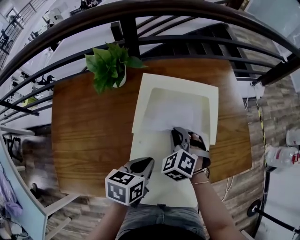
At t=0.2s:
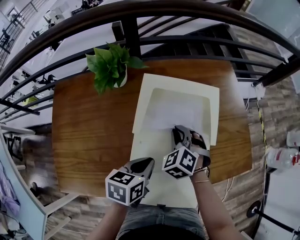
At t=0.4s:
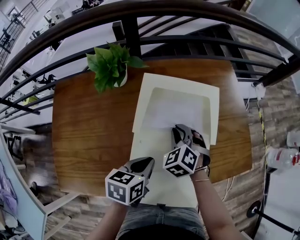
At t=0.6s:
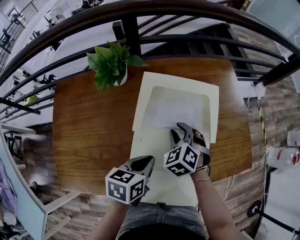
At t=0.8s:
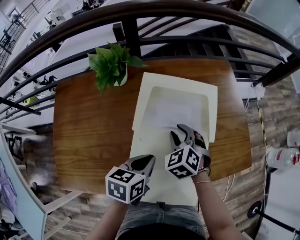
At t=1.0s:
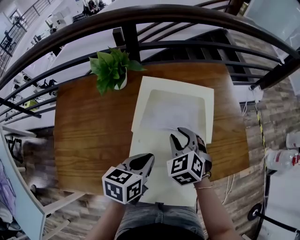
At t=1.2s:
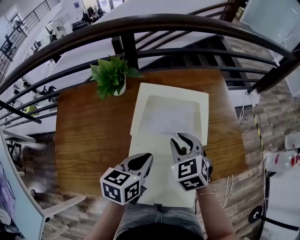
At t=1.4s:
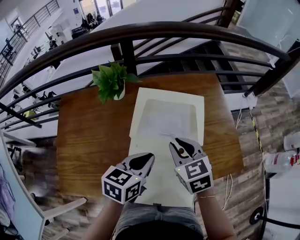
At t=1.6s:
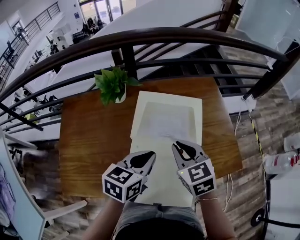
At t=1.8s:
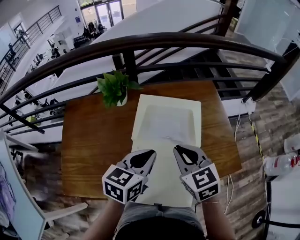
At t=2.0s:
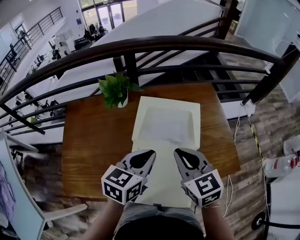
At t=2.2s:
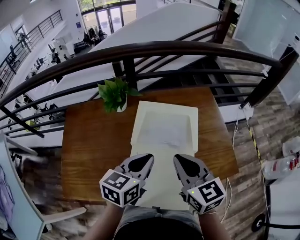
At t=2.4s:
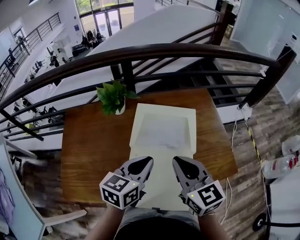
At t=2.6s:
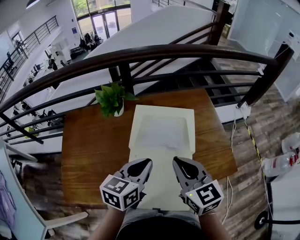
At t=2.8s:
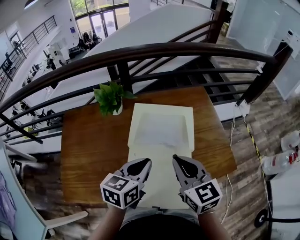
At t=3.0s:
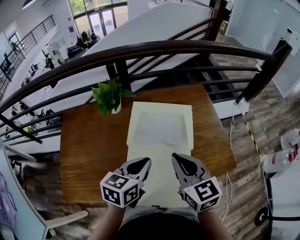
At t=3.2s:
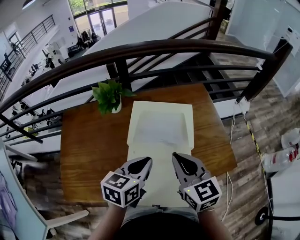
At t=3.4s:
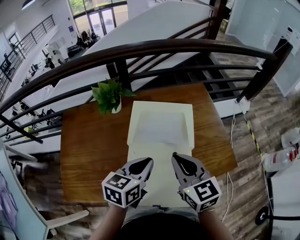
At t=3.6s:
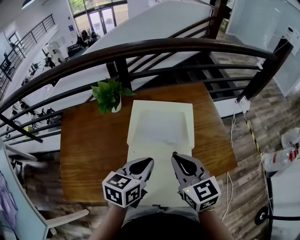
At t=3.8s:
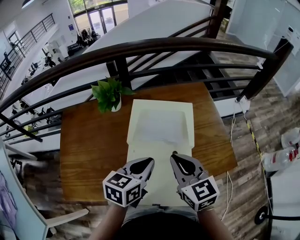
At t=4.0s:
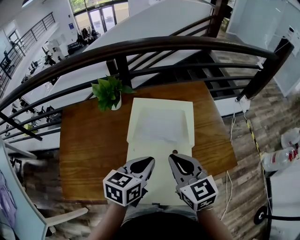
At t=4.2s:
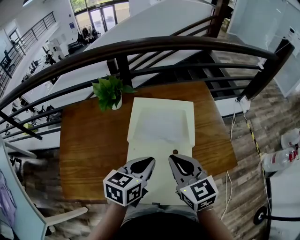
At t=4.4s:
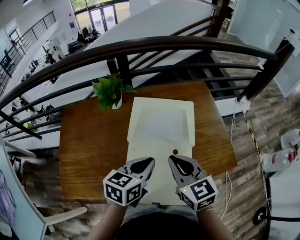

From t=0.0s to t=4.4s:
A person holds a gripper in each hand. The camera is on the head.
From t=0.0s to t=1.4s: The two grippers go some 10 cm upward. The right gripper turns by some 40 degrees.
From t=1.4s to t=3.0s: The right gripper goes some 10 cm upward and backward.
From t=3.0s to t=4.4s: The grippers stay close to where they were, moving slightly.

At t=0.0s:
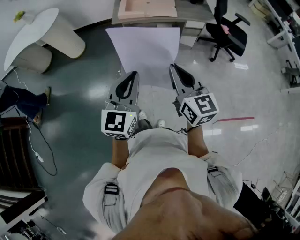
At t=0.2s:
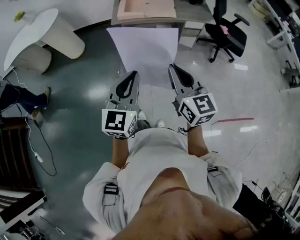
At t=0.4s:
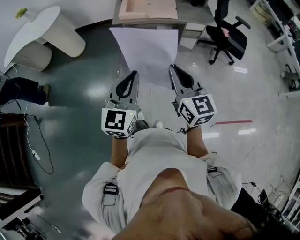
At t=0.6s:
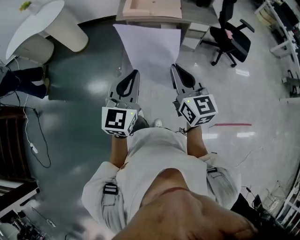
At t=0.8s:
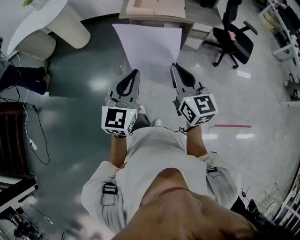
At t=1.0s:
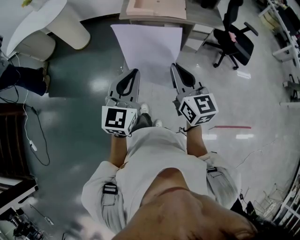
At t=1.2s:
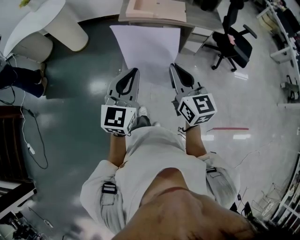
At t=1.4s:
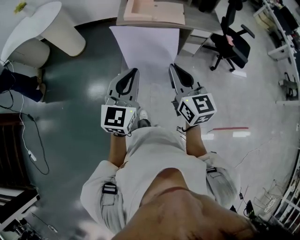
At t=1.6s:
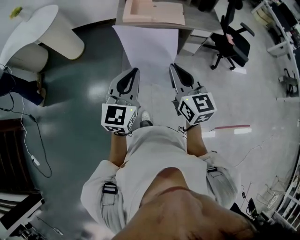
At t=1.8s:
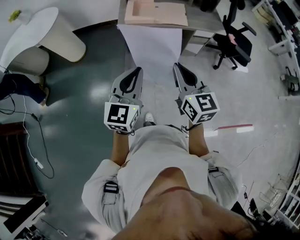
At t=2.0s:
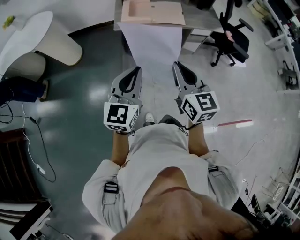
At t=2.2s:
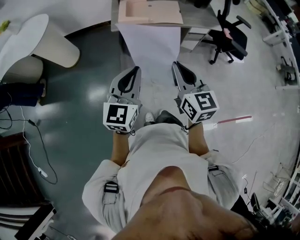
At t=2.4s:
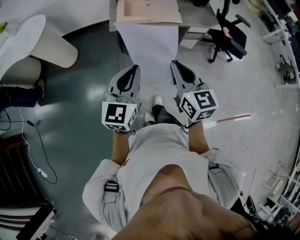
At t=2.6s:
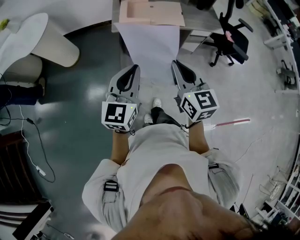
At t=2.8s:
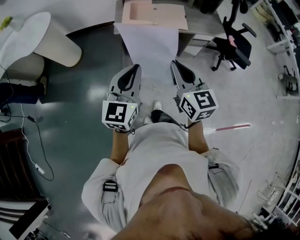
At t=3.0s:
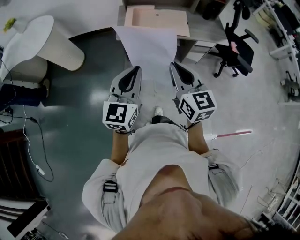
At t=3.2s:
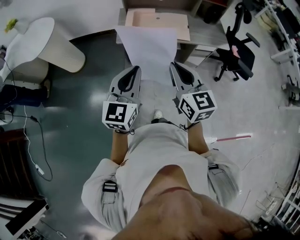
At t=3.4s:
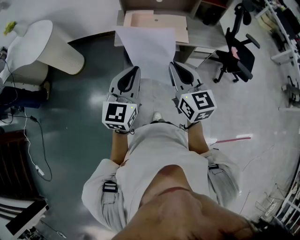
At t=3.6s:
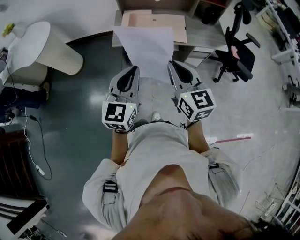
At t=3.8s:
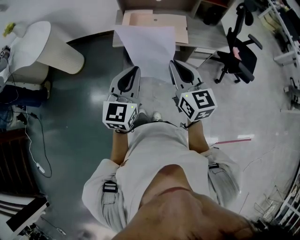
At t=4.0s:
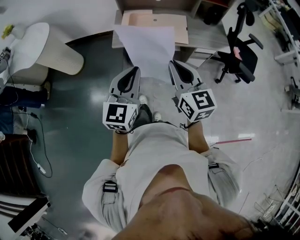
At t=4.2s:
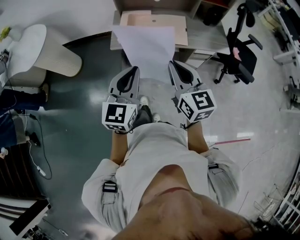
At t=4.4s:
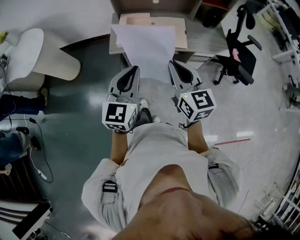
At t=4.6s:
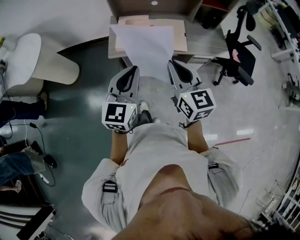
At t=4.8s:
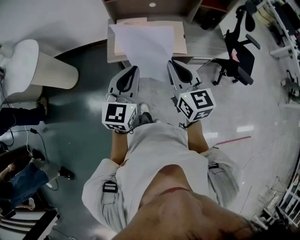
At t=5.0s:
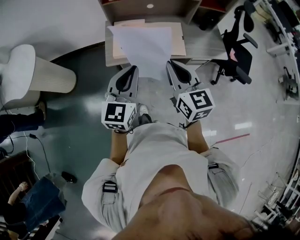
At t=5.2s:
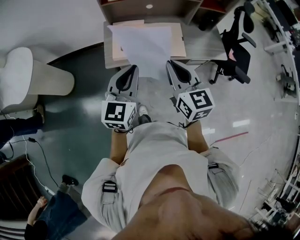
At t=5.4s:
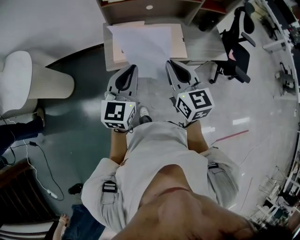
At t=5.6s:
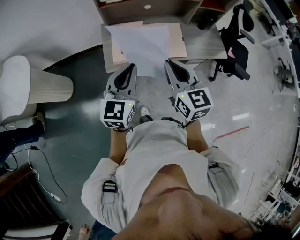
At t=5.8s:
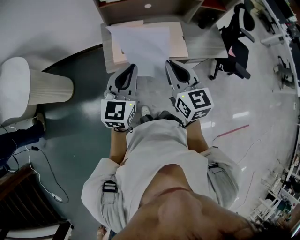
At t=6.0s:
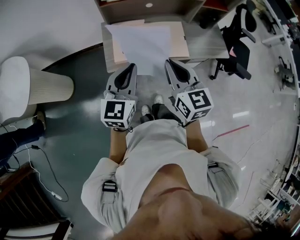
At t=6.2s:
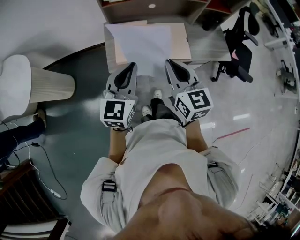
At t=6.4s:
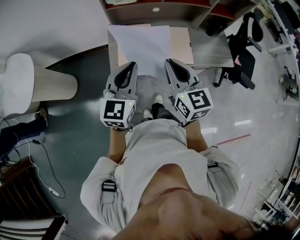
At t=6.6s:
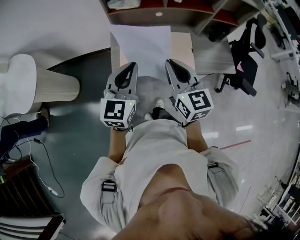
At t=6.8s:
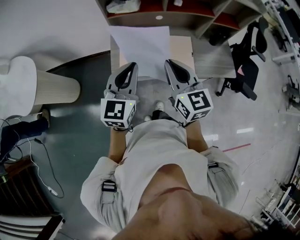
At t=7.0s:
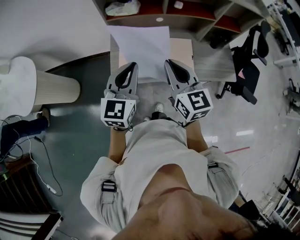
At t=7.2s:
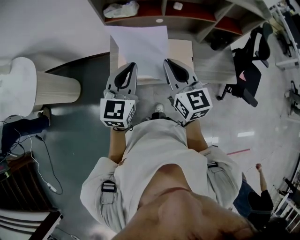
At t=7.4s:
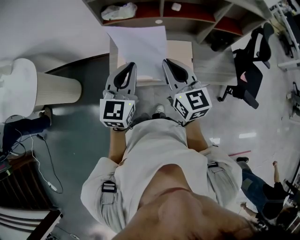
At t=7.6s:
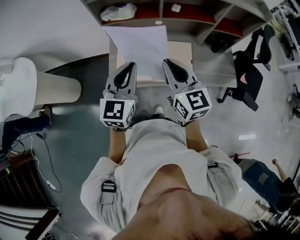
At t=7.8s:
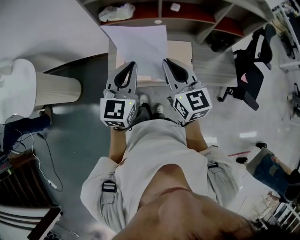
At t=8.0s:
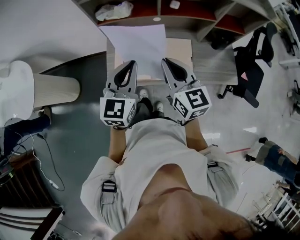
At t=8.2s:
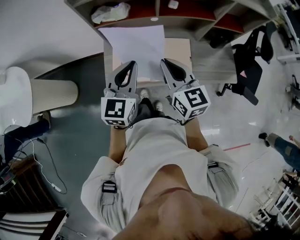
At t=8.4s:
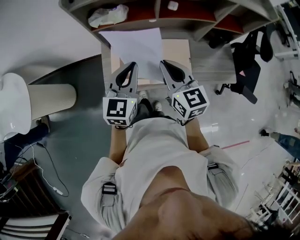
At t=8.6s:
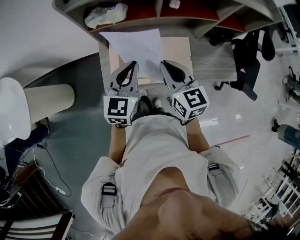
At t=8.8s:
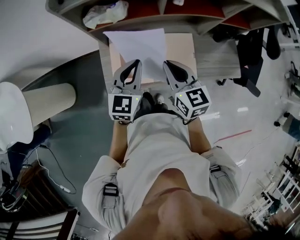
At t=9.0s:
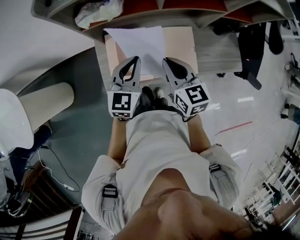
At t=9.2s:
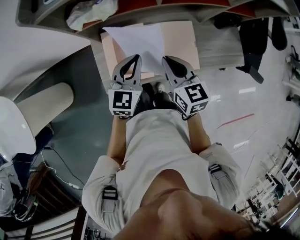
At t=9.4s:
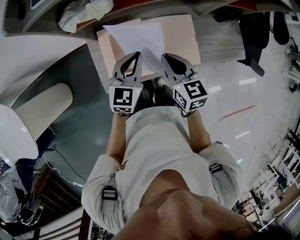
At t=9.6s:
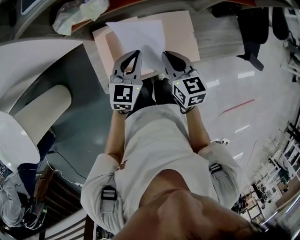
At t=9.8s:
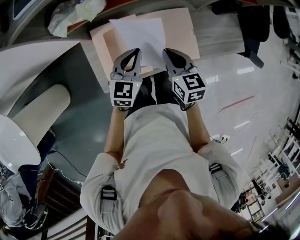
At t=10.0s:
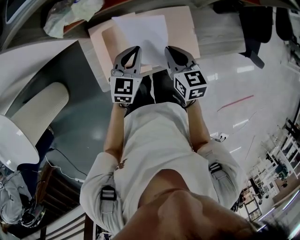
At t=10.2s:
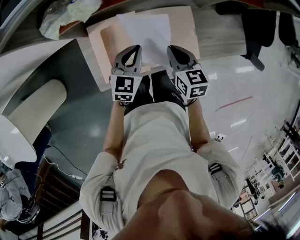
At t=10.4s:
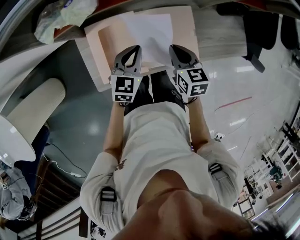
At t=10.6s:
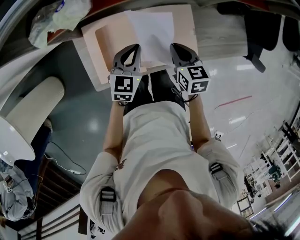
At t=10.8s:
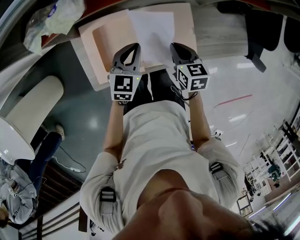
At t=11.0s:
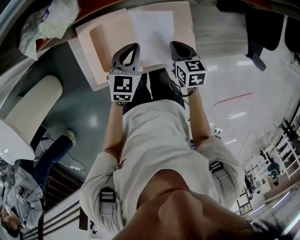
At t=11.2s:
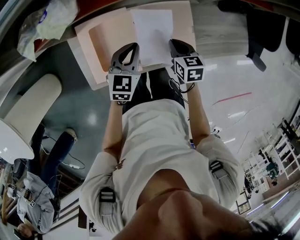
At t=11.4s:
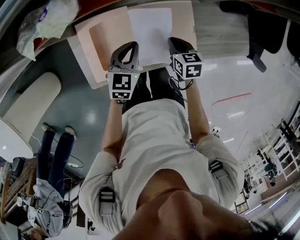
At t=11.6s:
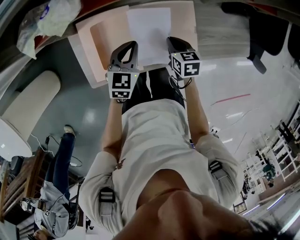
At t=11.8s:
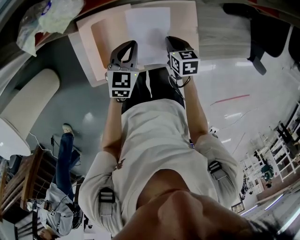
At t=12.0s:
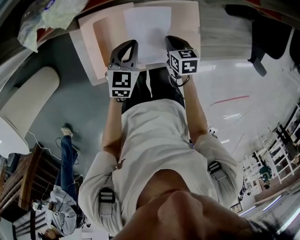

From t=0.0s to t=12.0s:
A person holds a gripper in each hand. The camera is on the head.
From t=0.0s to t=1.6s: The two grippers go about 15 cm forward and to the left.
From t=1.6s to t=3.0s: The grippers both shift forward by approximately 15 cm.
From t=3.0s to t=4.4s: The two grippers go some 15 cm forward.
From t=4.4s to t=6.0s: The two grippers go some 20 cm forward and to the left.
From t=6.0s to t=7.6s: The grippers both shift forward and to the right by approximately 15 cm.
From t=7.6s to t=9.0s: The two grippers go some 20 cm downward and forward.
From t=9.0s to t=10.4s: Both grippers travel together downward, some 15 cm.
From t=10.4s to t=12.0s: The right gripper moves downward, roughly 15 cm.

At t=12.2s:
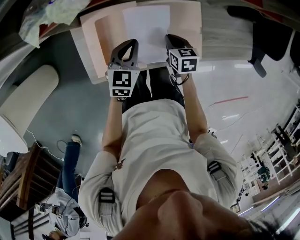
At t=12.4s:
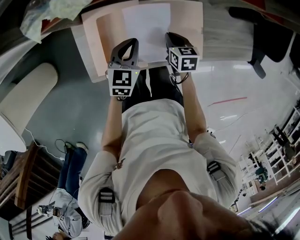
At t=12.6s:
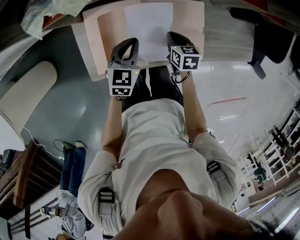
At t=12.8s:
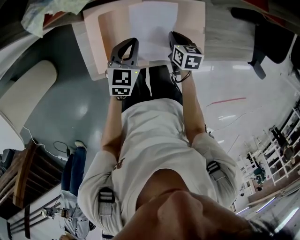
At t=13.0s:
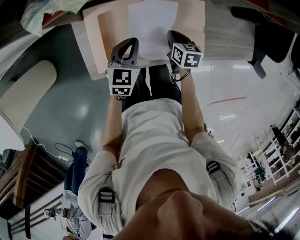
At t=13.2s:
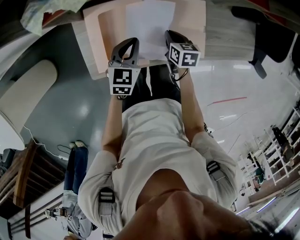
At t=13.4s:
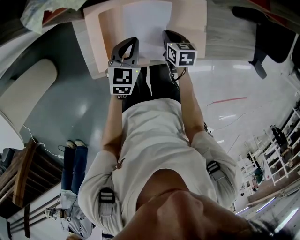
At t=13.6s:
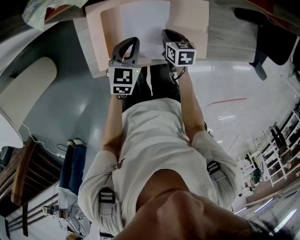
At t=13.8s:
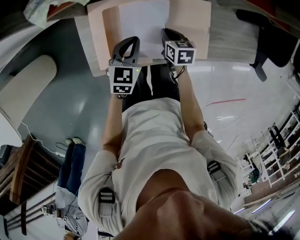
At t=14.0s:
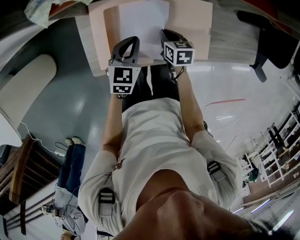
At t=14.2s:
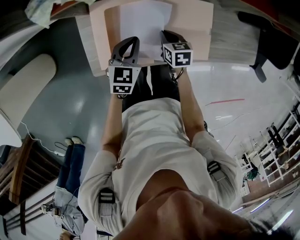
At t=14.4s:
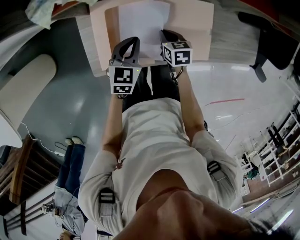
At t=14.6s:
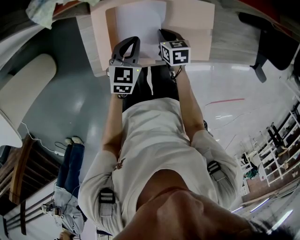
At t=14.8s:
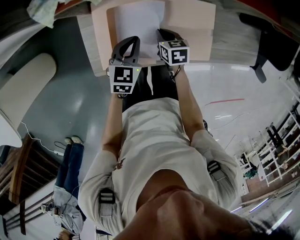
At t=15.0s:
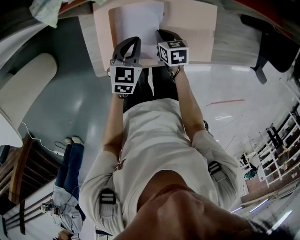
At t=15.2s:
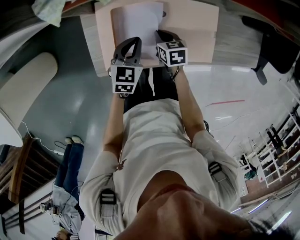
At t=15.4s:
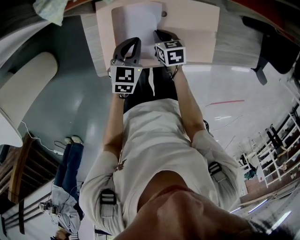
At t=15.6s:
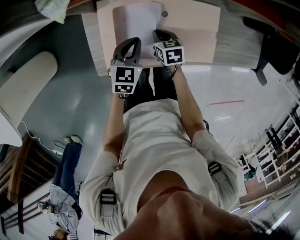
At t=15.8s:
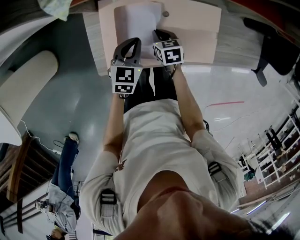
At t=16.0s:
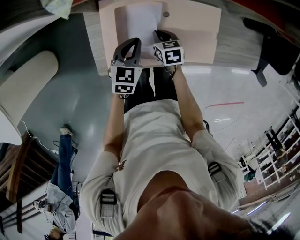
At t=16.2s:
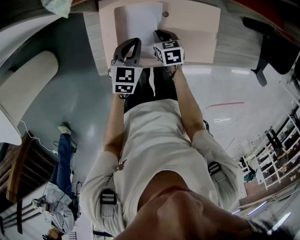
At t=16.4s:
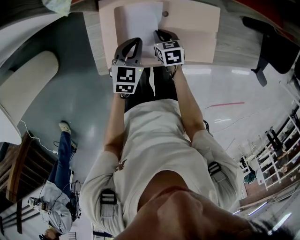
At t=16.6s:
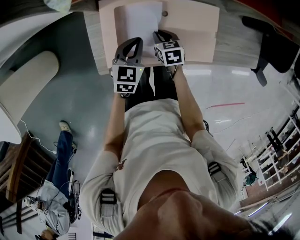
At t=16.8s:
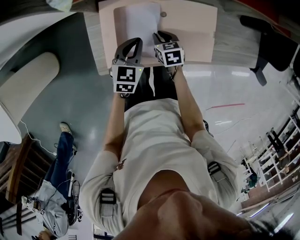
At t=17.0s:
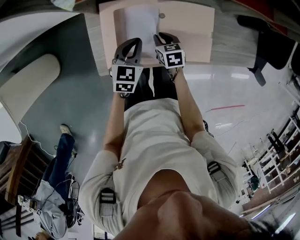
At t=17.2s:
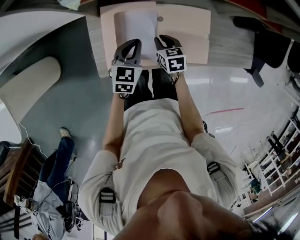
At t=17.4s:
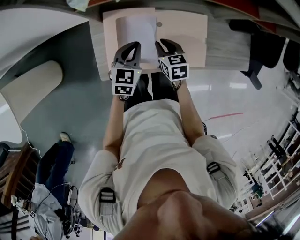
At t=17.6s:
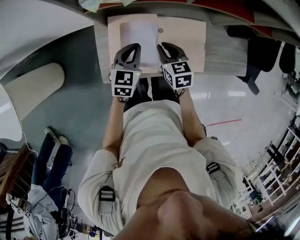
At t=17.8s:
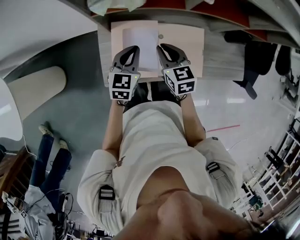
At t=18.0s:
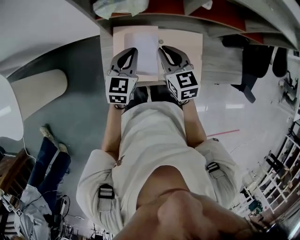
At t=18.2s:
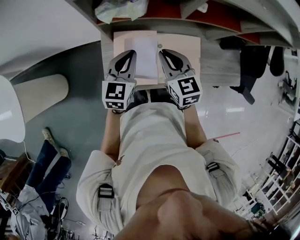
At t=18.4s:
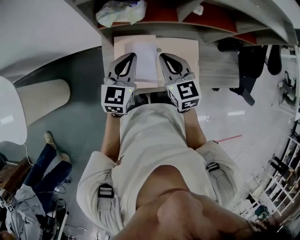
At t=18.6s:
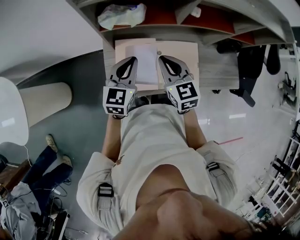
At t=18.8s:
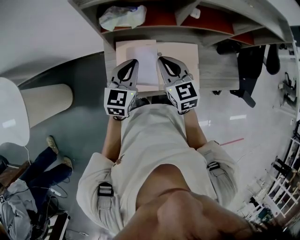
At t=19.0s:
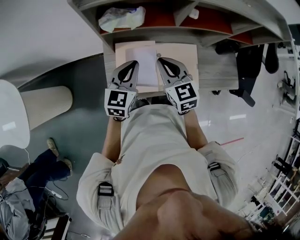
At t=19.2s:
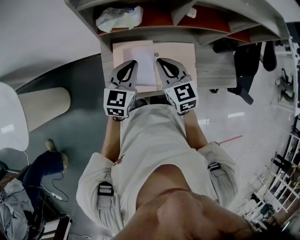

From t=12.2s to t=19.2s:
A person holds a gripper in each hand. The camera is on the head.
From t=12.2s to t=13.6s: The grippers make only small movements.
From t=13.6s to t=15.0s: The right gripper heads to the left, covering roughly 5 cm.
From t=15.0s to t=16.4s: There are only small adjustments of the grippers.
From t=16.4s to t=17.8s: The right gripper goes roughly 20 cm upward, and changes its angle by some 30 degrees; the left gripper goes about 10 cm upward.
From t=17.8s to t=19.2s: Both grippers travel together upward, some 10 cm.
